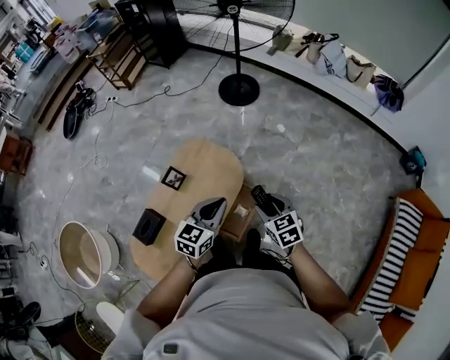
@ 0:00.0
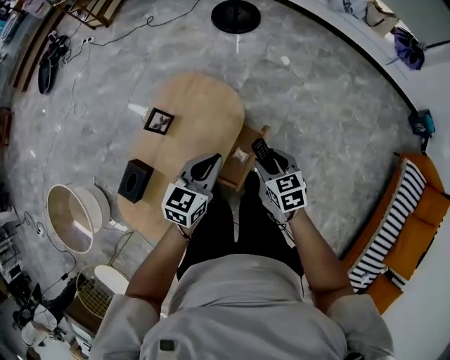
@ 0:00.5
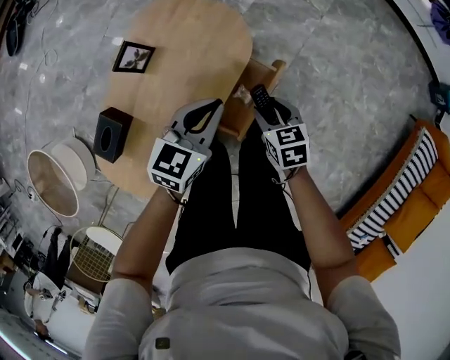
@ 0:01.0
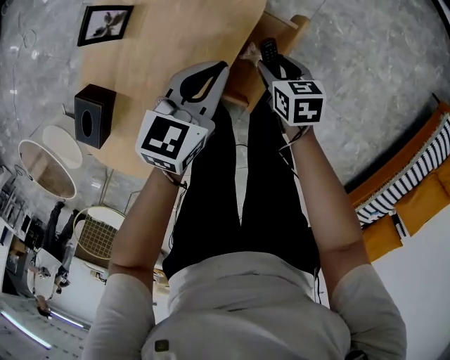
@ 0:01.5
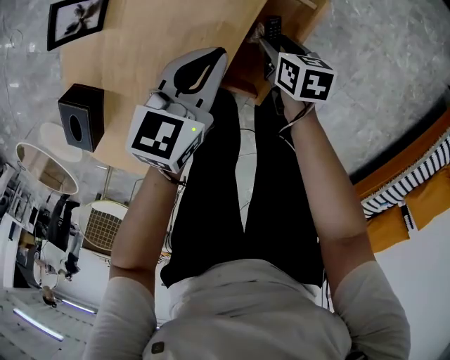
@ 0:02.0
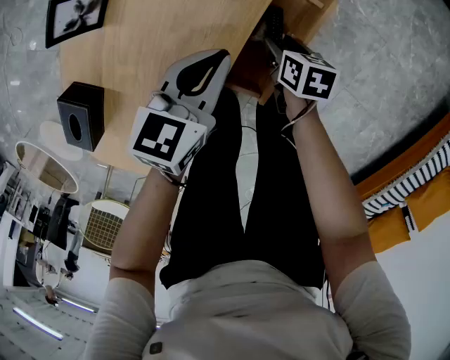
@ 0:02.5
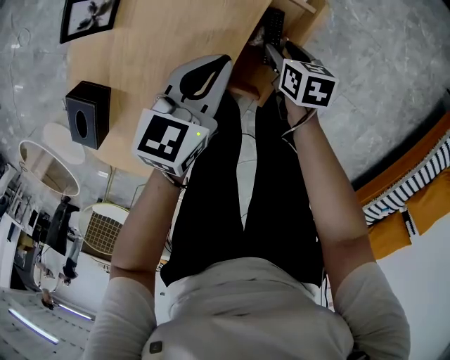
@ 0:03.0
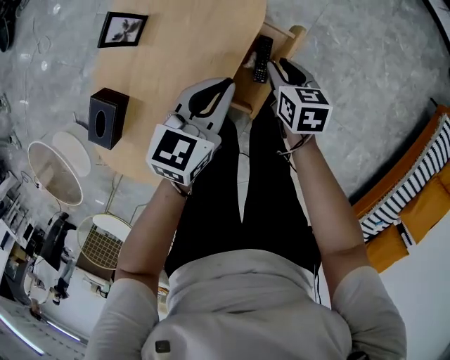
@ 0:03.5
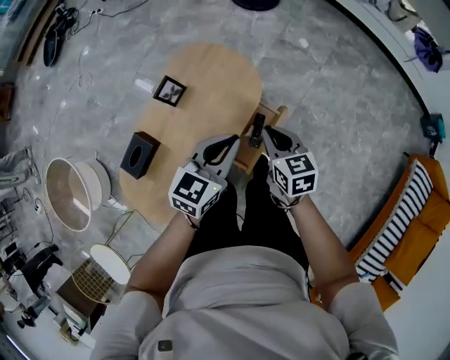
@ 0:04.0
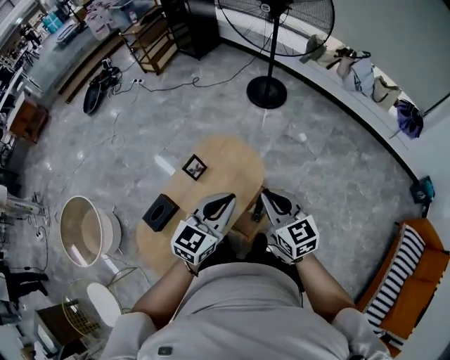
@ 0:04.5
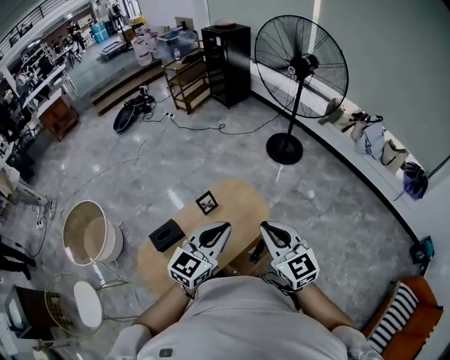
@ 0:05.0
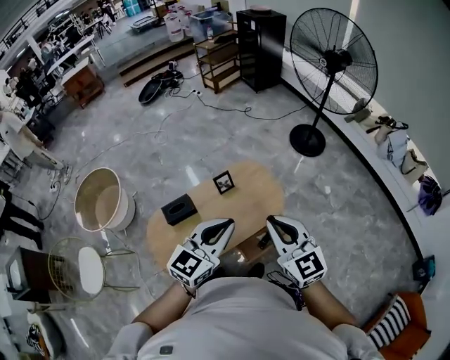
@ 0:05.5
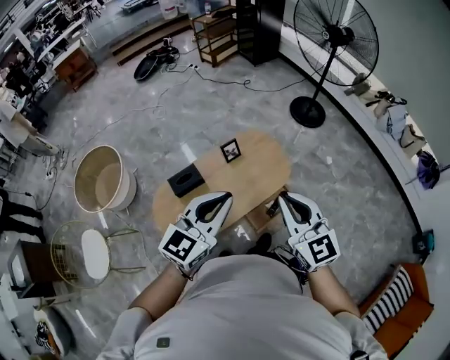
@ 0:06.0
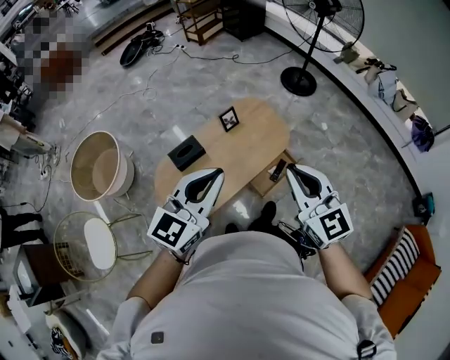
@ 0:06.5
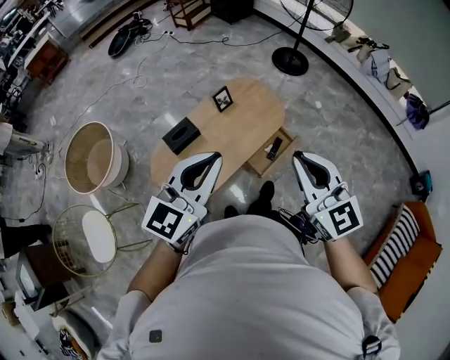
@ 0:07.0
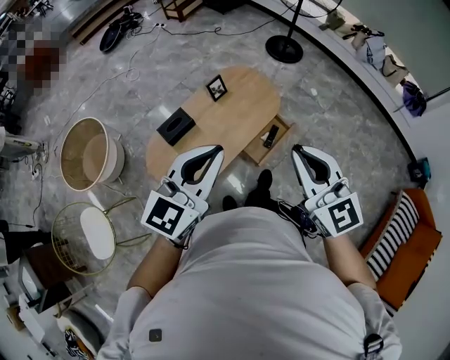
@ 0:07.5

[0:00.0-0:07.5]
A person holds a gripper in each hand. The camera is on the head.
0:00.0 to 0:02.0: The grippers both shift downward by roughly 50 cm. The right gripper rotates around the line of its fingers by some 40 degrees, clockwise from behind. The left gripper swivels approximately 20 degrees.
0:02.0 to 0:04.0: The two grippers go approximately 35 cm upward. The right gripper swivels about 40 degrees, and closes its fingers.
0:04.0 to 0:05.5: Both grippers travel together upward, roughly 30 cm. The right gripper angles its fingers upward, by about 30 degrees, while the left gripper changes its angle by approximately 30 degrees.
0:05.5 to 0:07.5: The right gripper moves backward, some 20 cm; the left gripper moves backward and to the left, about 20 cm.

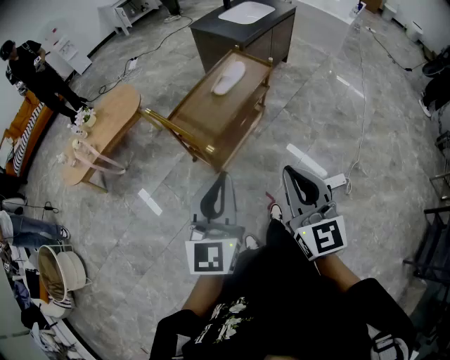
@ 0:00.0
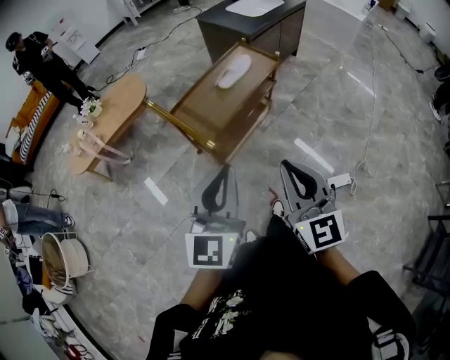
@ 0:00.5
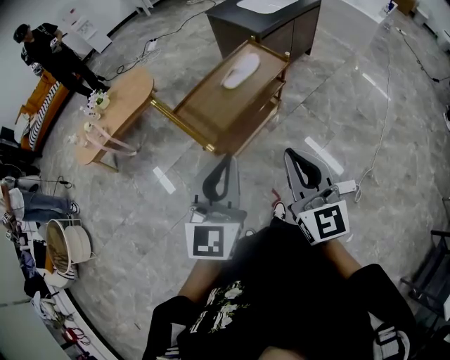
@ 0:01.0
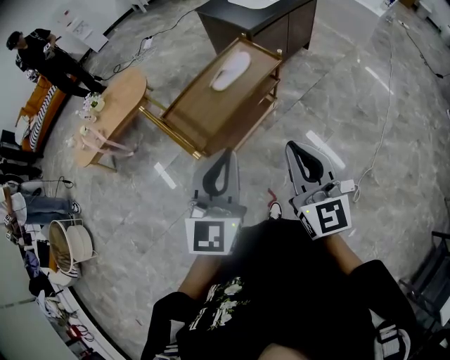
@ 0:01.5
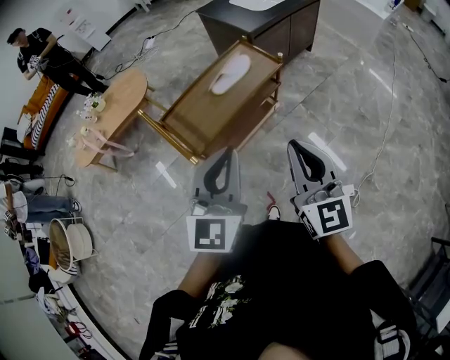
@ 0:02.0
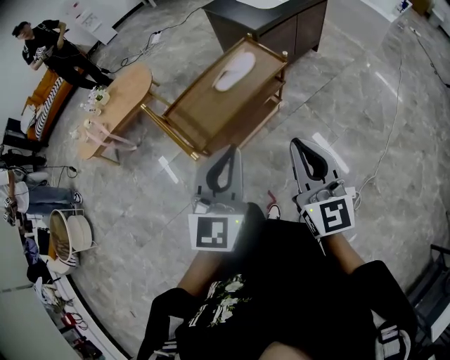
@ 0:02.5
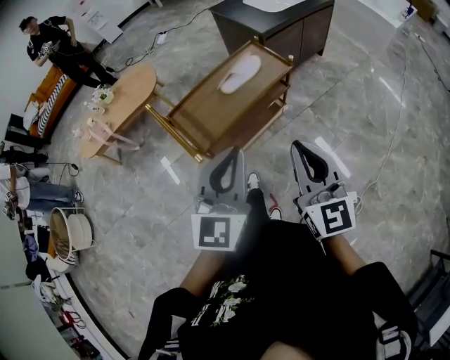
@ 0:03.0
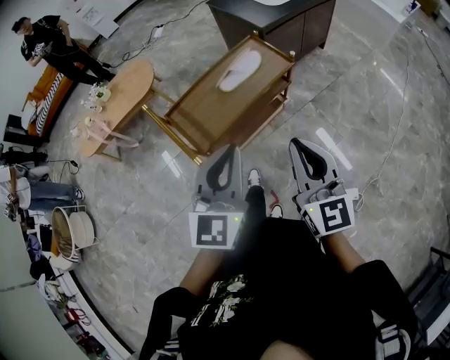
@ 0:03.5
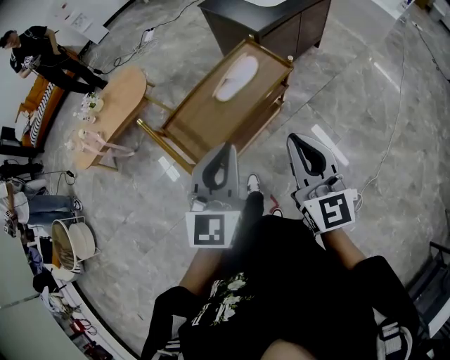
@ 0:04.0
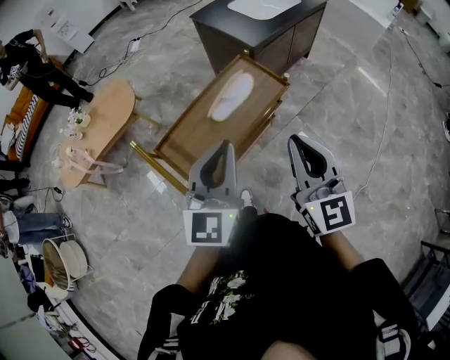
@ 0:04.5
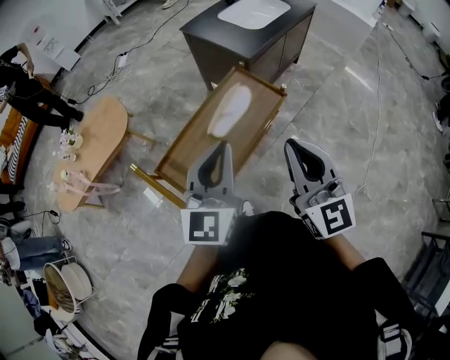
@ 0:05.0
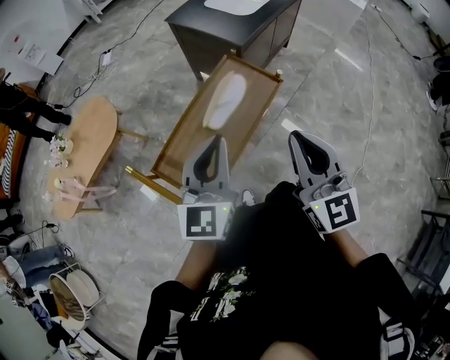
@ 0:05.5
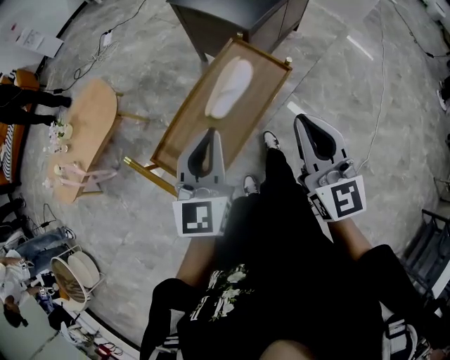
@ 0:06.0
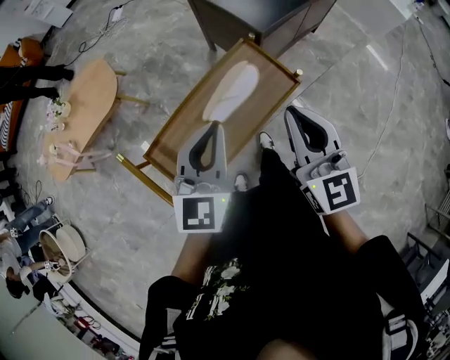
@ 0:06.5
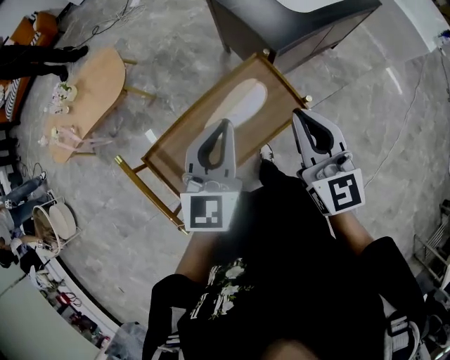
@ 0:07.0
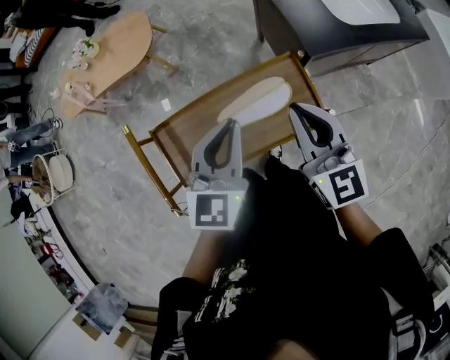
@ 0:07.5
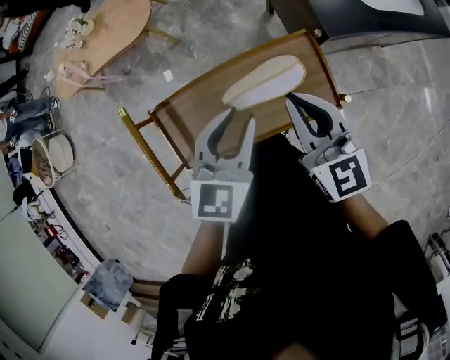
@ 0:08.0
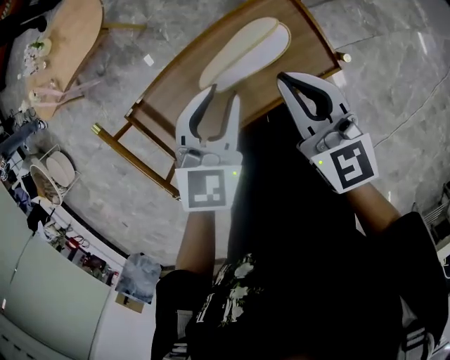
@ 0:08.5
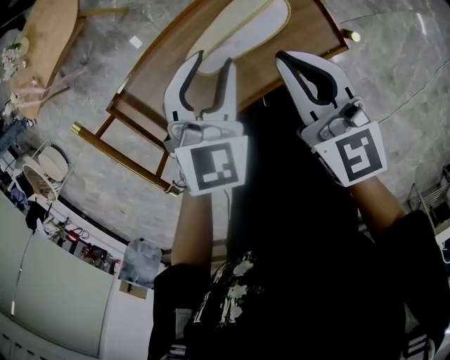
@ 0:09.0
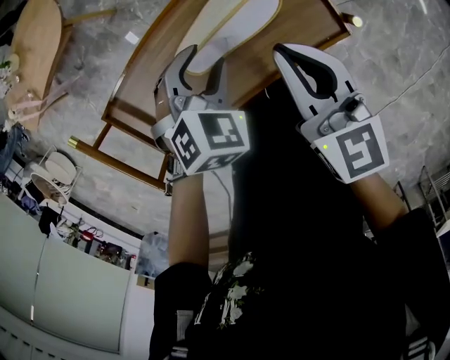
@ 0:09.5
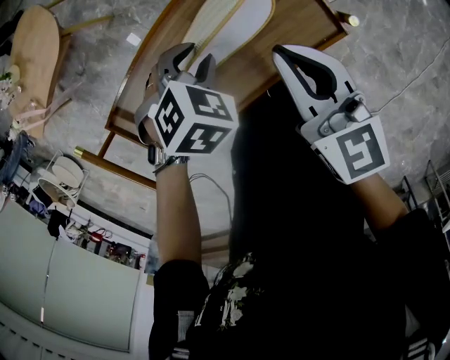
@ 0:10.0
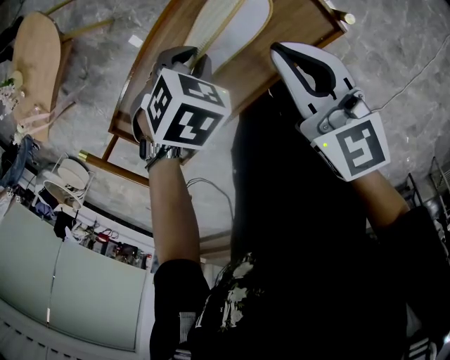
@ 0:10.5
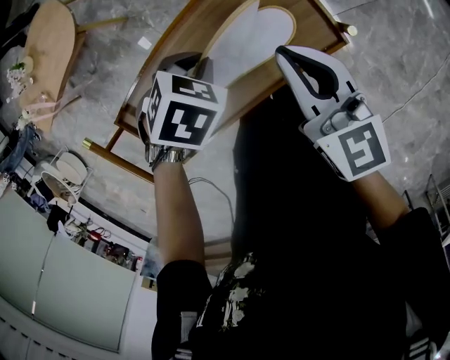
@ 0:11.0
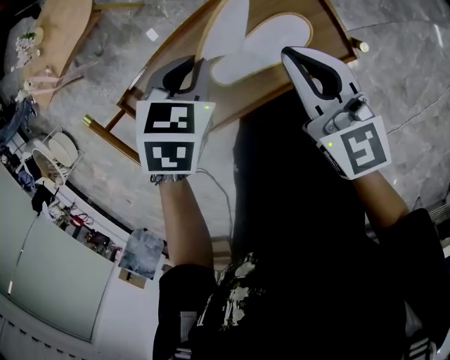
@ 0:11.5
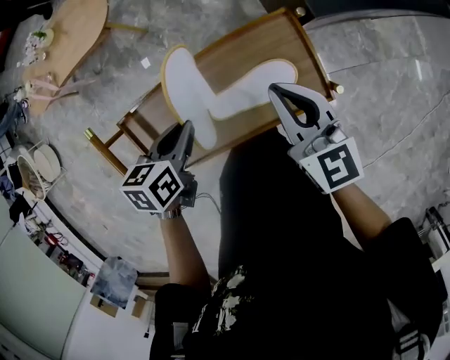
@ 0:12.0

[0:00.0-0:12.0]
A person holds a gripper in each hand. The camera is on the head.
0:00.0 to 0:02.0: The right gripper is displaced forward and to the right by about 20 cm, while the left gripper is displaced to the right and forward by about 20 cm.
0:02.0 to 0:04.0: Both grippers move forward, about 10 cm.
0:04.0 to 0:06.0: The left gripper heads forward and to the left, covering some 20 cm; the right gripper heads forward, covering about 15 cm.
0:06.0 to 0:08.0: The left gripper changes place by approximately 15 cm, turns by about 30 degrees, and opens its fingers, while the right gripper moves roughly 25 cm, and rotates about 40 degrees.
0:08.0 to 0:10.0: The left gripper is displaced downward by some 25 cm, and angles its fingers downward, by about 50 degrees. The right gripper heads downward, covering about 15 cm, and swivels some 20 degrees.
0:10.0 to 0:12.0: The left gripper changes place by roughly 15 cm, rolls counterclockwise, seen from behind, by some 70 degrees, and closes up. The right gripper shifts about 5 cm upward.

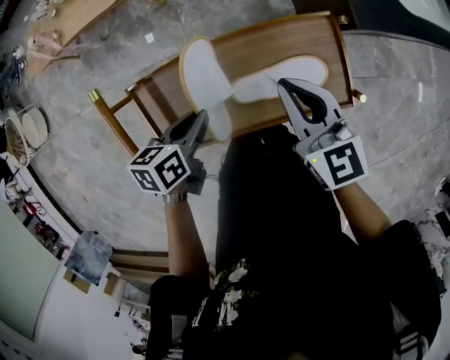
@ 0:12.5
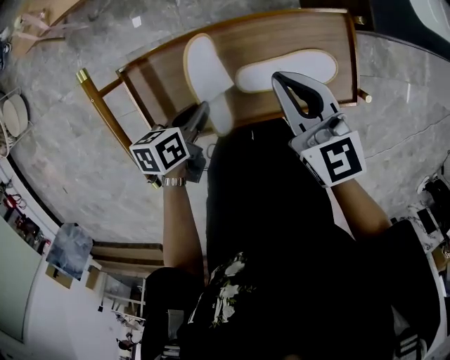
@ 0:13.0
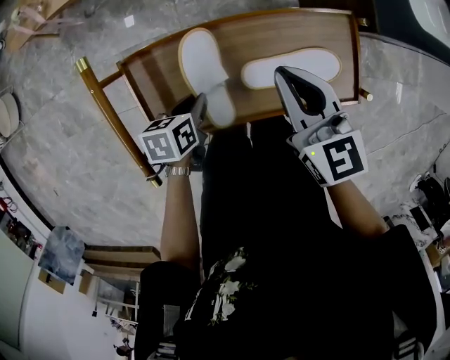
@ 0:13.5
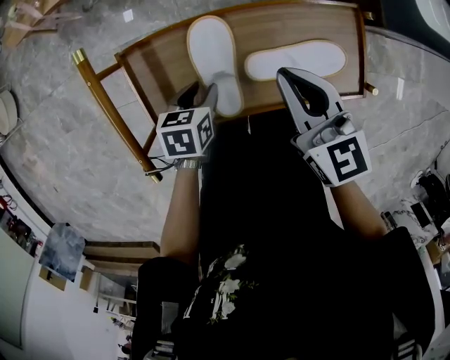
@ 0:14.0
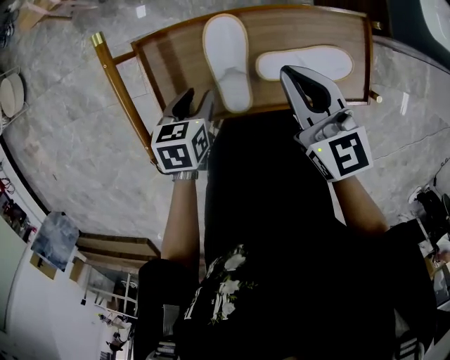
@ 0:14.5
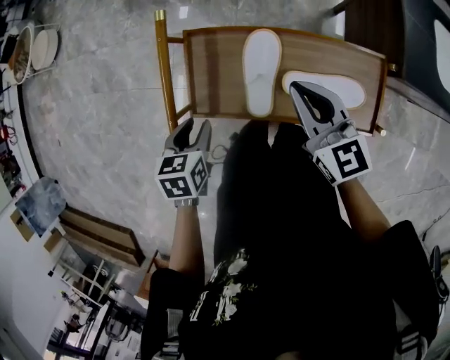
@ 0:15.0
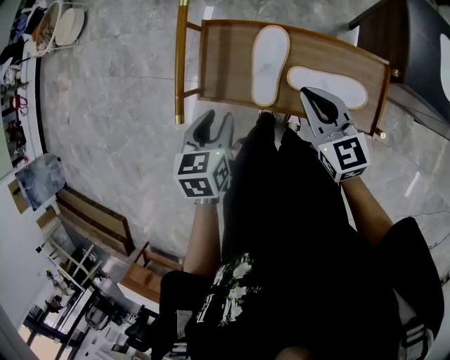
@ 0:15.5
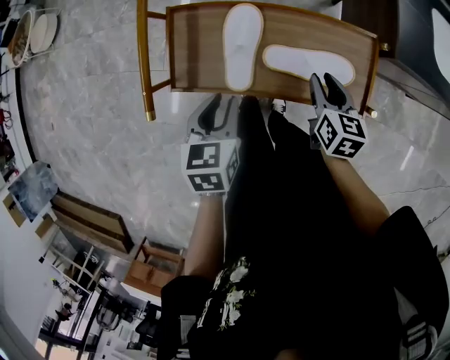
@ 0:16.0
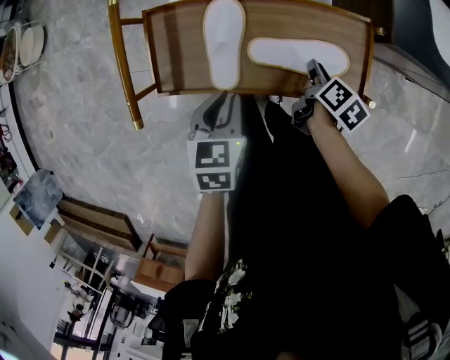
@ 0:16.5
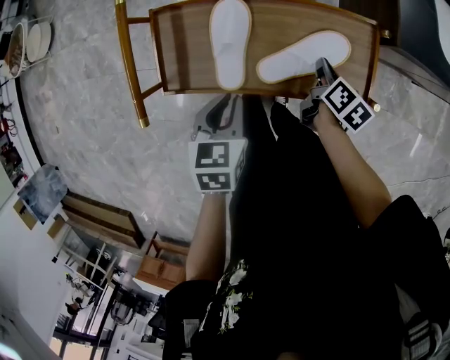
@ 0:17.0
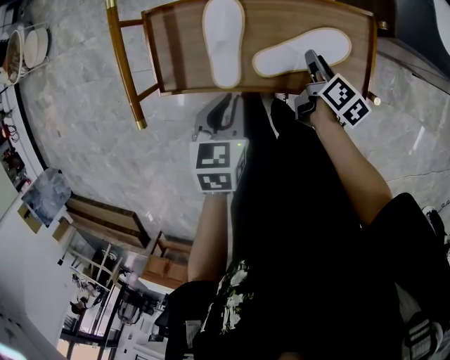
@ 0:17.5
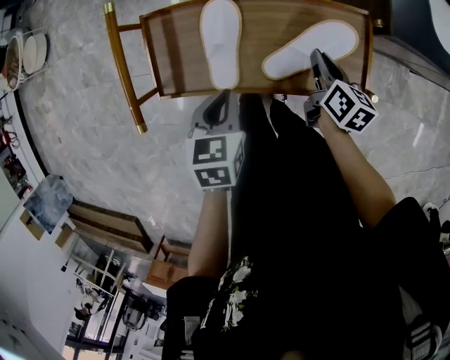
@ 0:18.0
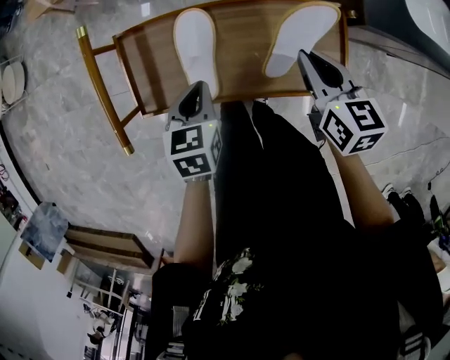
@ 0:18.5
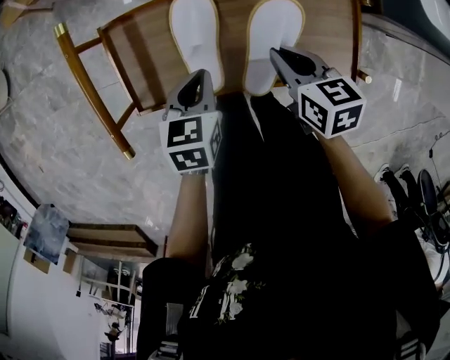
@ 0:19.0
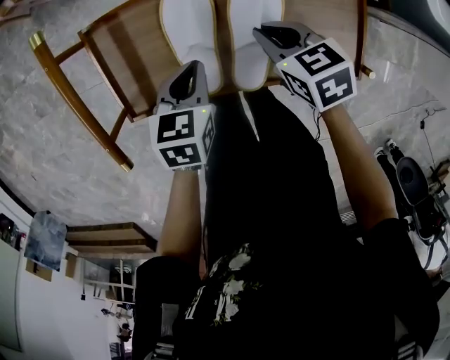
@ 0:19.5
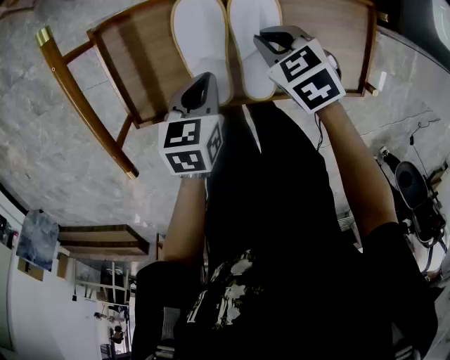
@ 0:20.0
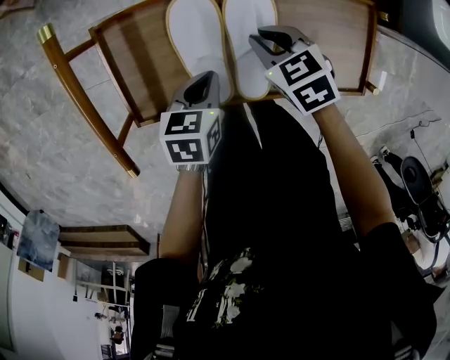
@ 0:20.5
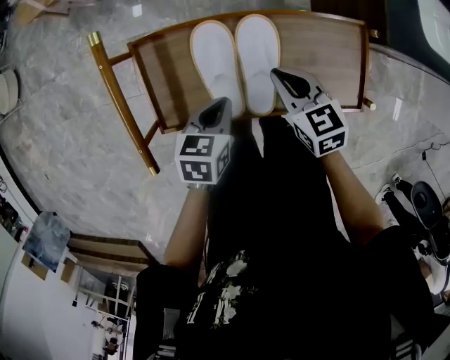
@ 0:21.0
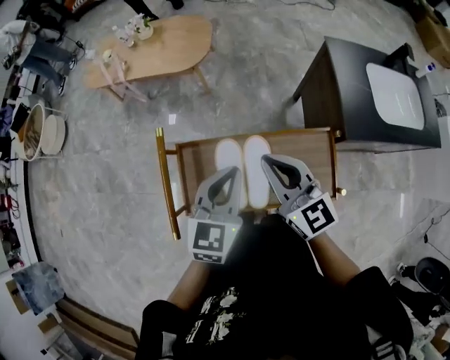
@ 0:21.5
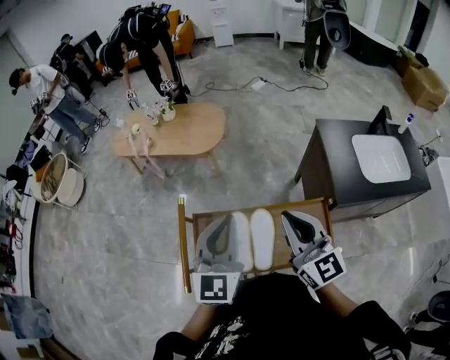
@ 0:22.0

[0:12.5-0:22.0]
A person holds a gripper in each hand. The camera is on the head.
0:12.5 to 0:14.5: The right gripper heads to the left, covering some 10 cm. Meanwhile the left gripper is displaced downward, to the left and backward by some 10 cm, and opens its fingers.
0:14.5 to 0:16.5: The right gripper goes roughly 15 cm downward, and twists roughly 50 degrees clockwise, seen from behind; the left gripper changes place by some 15 cm, and closes.
0:16.5 to 0:18.0: The right gripper swivels some 20 degrees.
0:18.0 to 0:20.0: The left gripper is displaced downward and forward by approximately 10 cm. Meanwhile the right gripper shifts roughly 15 cm to the left, and swivels about 60 degrees.
0:20.0 to 0:22.0: Both grippers move upward, roughly 40 cm. The right gripper tips its fingers upward by approximately 70 degrees. Meanwhile the left gripper tilts its fingers about 50 degrees upward.
